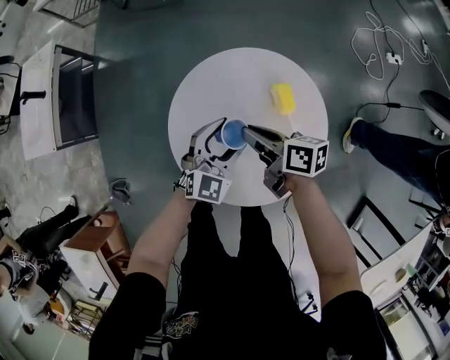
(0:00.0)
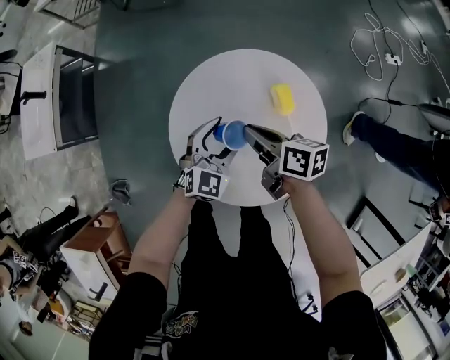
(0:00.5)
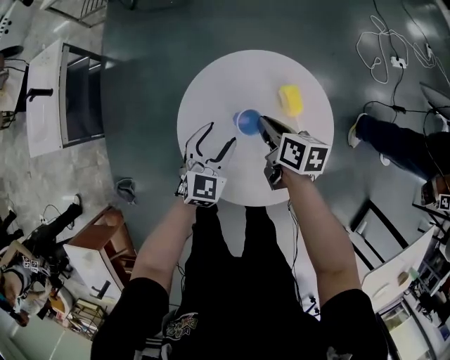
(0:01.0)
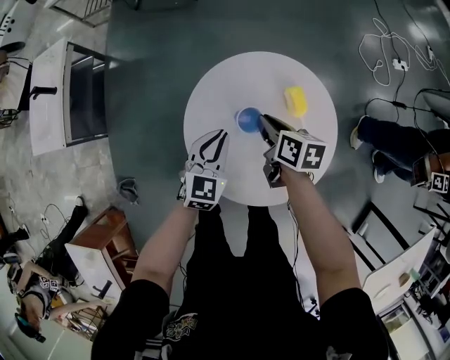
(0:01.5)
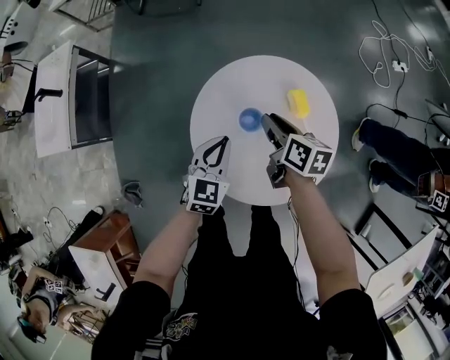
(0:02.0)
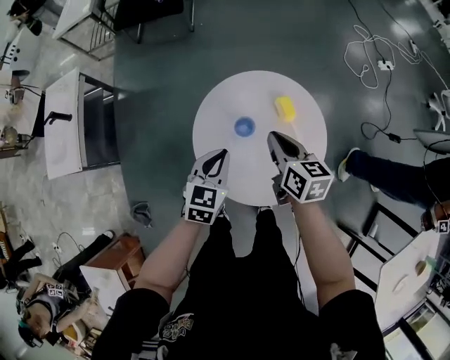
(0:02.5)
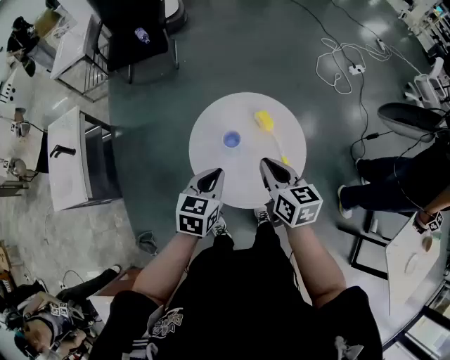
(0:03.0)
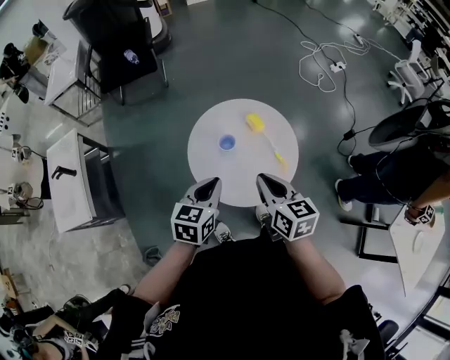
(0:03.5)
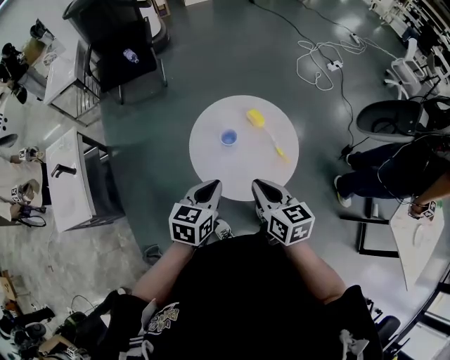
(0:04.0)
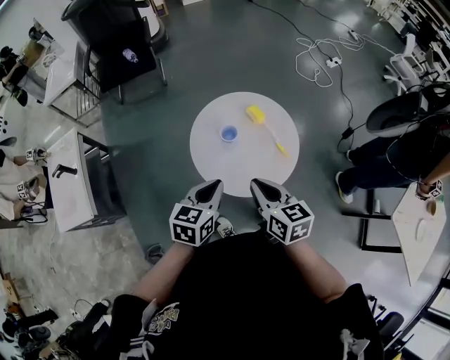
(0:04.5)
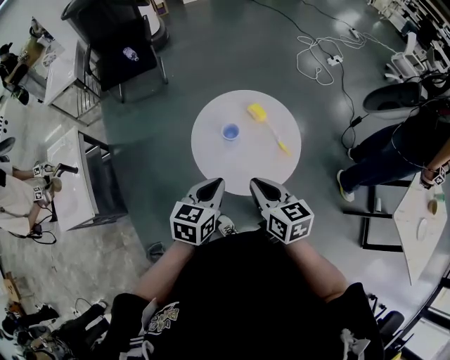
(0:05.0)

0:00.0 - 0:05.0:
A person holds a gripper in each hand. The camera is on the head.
0:00.0 - 0:02.5: The right gripper goes some 10 cm upward, and swivels roughly 30 degrees, while the left gripper heads to the left and upward, covering about 10 cm, rotates approximately 20 degrees, and closes.
0:02.5 - 0:05.0: The grippers both shift backward and upward by about 20 cm.

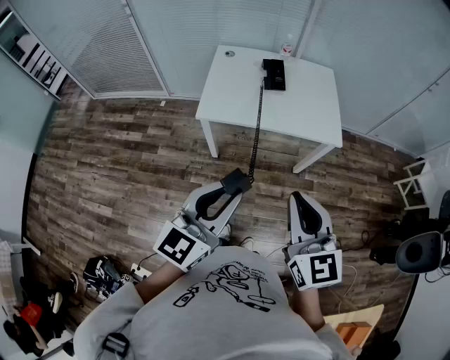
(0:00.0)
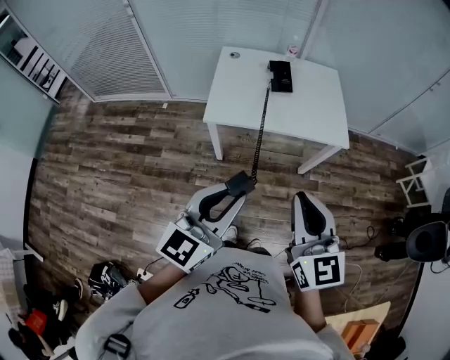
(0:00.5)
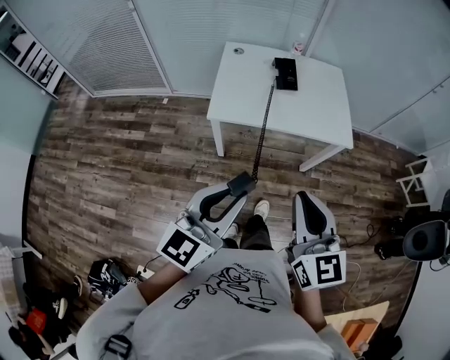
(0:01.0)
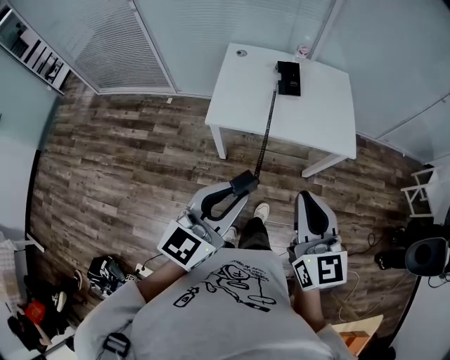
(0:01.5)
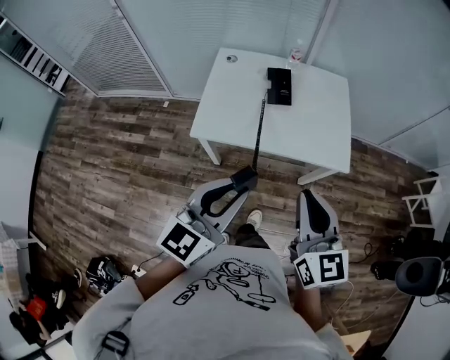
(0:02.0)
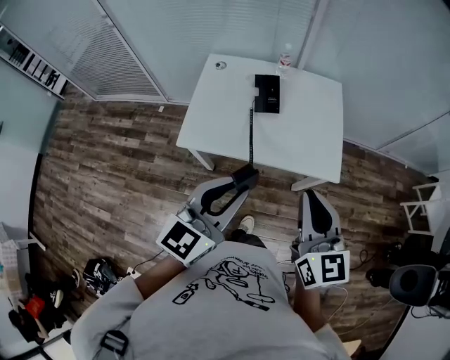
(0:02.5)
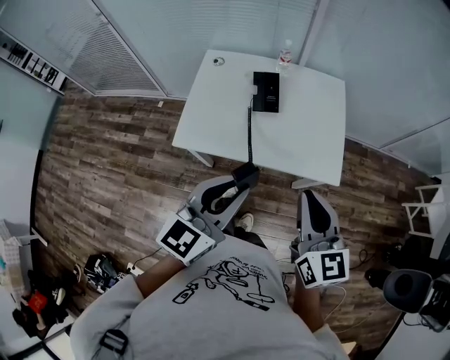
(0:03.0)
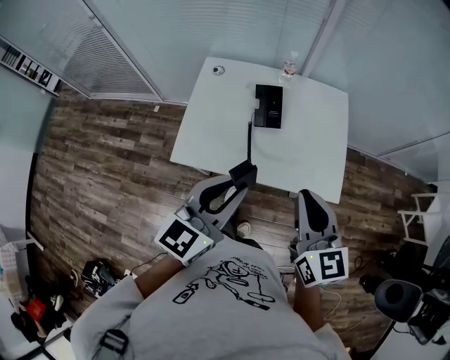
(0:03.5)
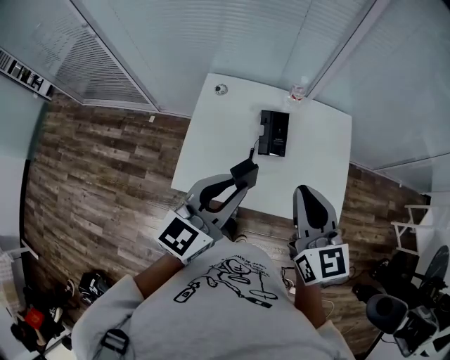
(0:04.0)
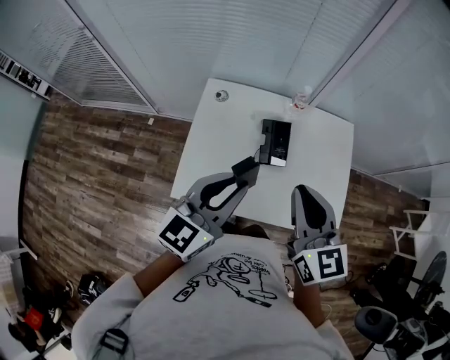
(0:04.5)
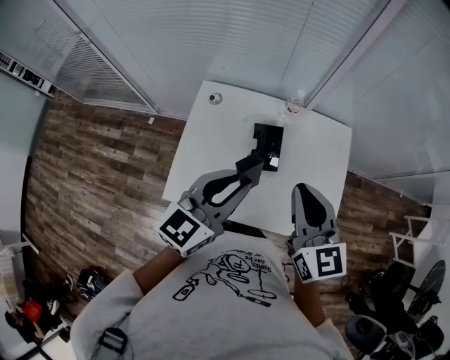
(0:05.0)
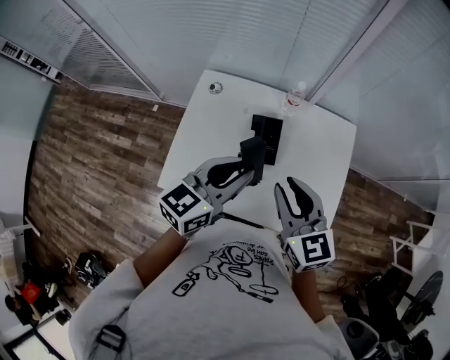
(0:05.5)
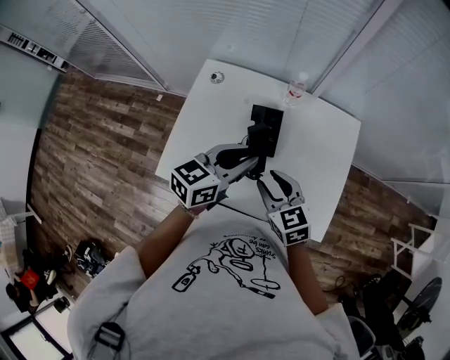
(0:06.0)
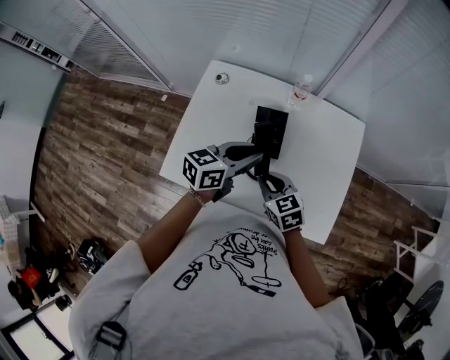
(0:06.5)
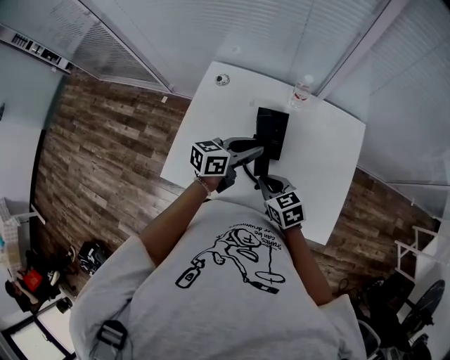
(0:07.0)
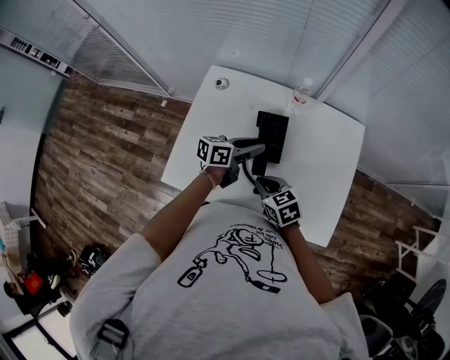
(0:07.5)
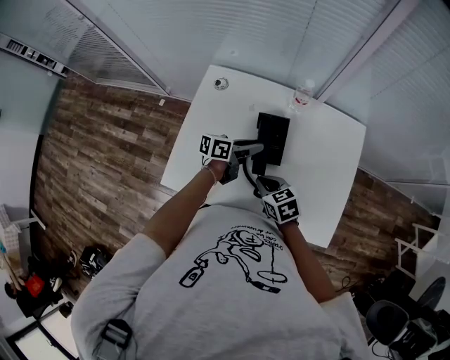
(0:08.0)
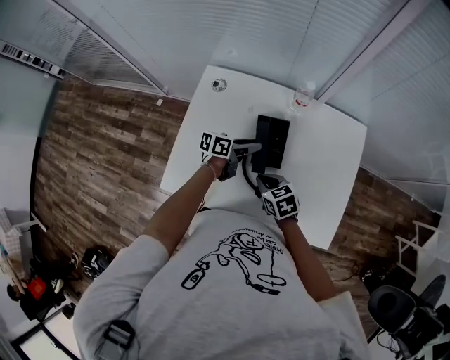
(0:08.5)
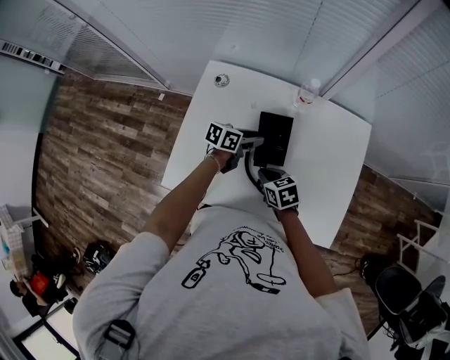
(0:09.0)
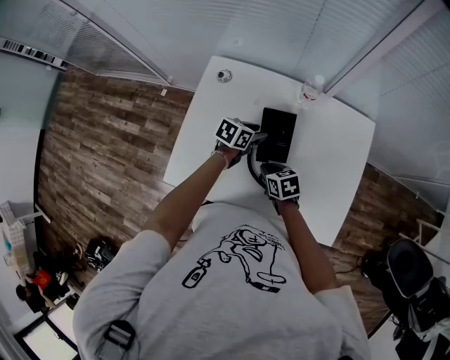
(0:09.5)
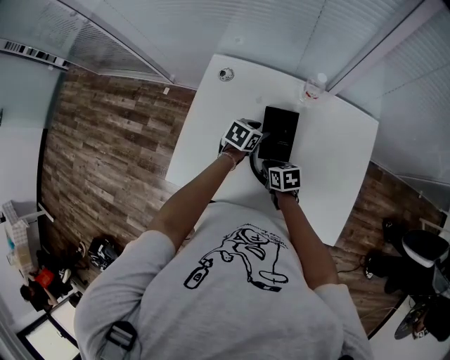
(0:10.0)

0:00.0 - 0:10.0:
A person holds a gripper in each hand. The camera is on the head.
0:00.0 - 0:02.0: The two grippers go about 20 cm forward.
0:02.0 - 0:04.0: Both grippers move forward, about 30 cm.
0:04.0 - 0:06.0: The left gripper goes some 20 cm forward, downward and to the right. Meanwhile the right gripper travels downward by some 20 cm, turns by approximately 30 degrees, and opens.
0:06.0 - 0:08.0: The right gripper travels downward by some 10 cm, and closes up, while the left gripper heads downward and forward, covering roughly 20 cm, and rotates roughly 30 degrees.
0:08.0 - 0:10.0: The right gripper goes approximately 10 cm downward and forward, and turns by about 20 degrees. Meanwhile the left gripper moves downward, some 5 cm, and angles its fingers downward, by roughly 30 degrees.

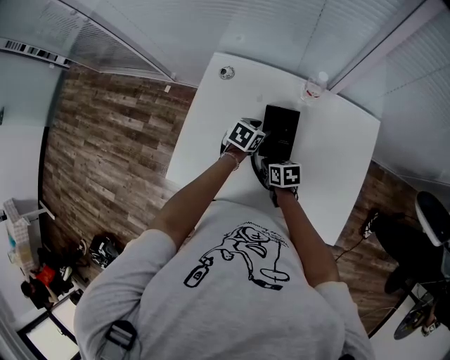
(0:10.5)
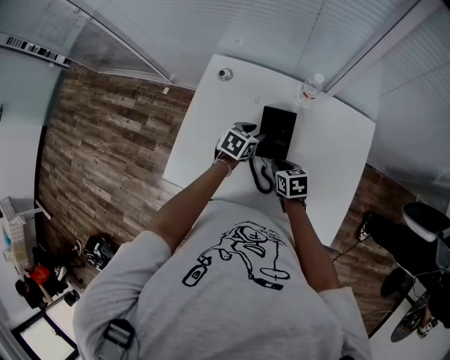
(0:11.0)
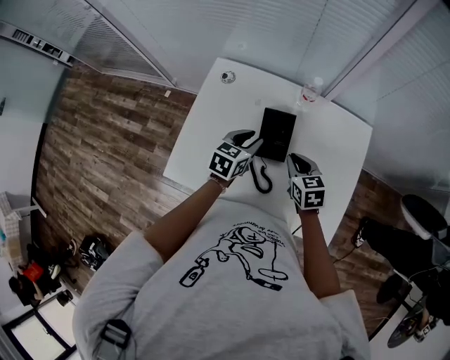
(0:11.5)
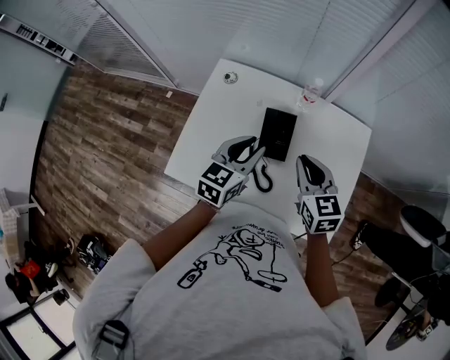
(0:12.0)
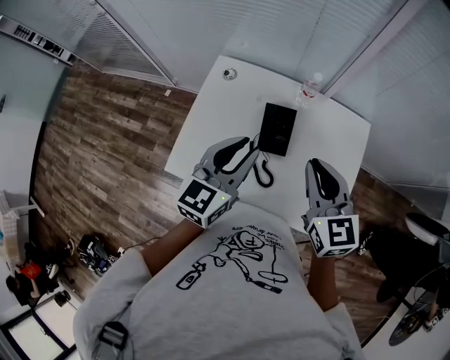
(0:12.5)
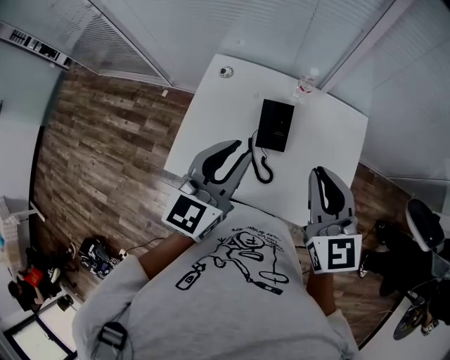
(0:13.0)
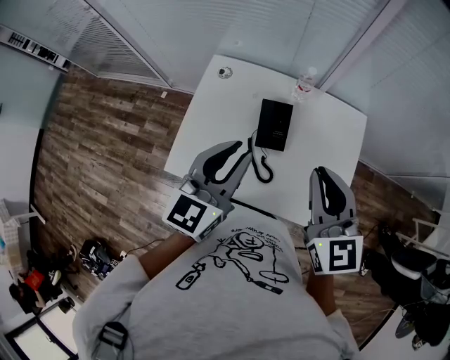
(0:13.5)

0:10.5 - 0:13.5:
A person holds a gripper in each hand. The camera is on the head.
0:10.5 - 0:12.0: The left gripper moves upward and backward, some 25 cm, and swivels roughly 30 degrees. Meanwhile the right gripper moves upward, some 25 cm, and turns by about 40 degrees.
0:12.0 - 0:13.5: The two grippers go roughly 15 cm upward and backward.

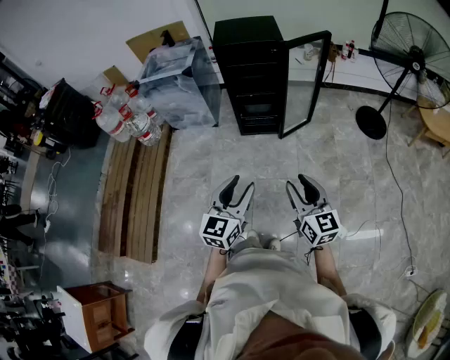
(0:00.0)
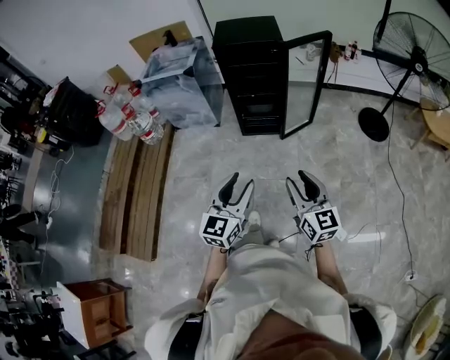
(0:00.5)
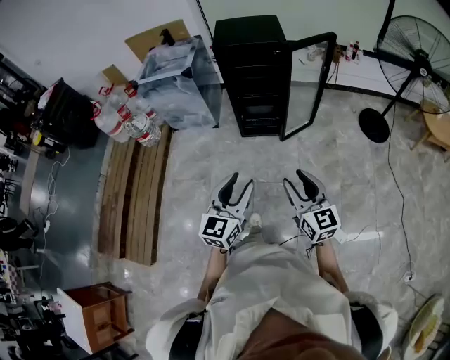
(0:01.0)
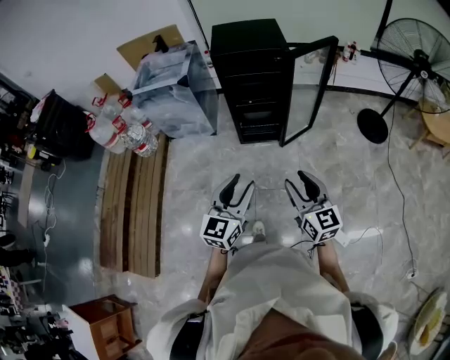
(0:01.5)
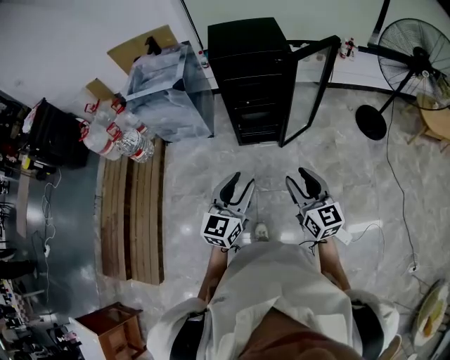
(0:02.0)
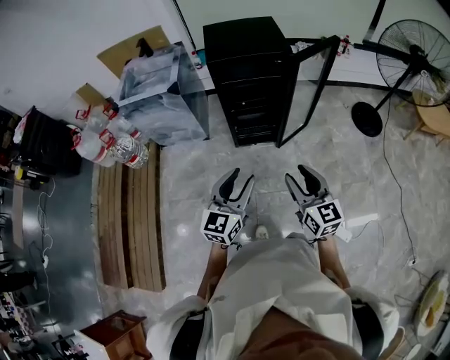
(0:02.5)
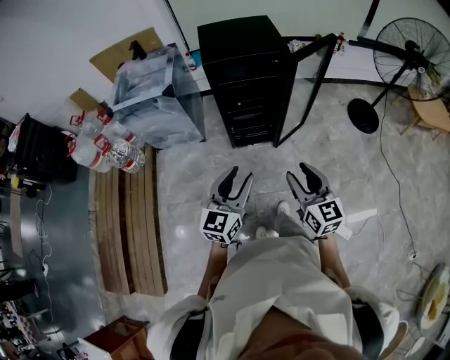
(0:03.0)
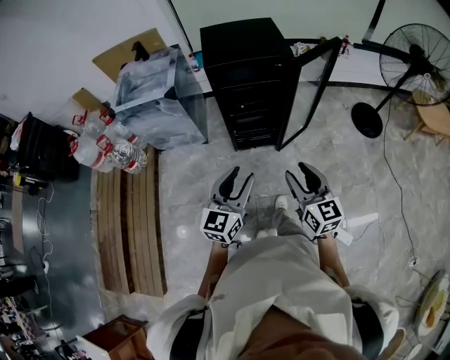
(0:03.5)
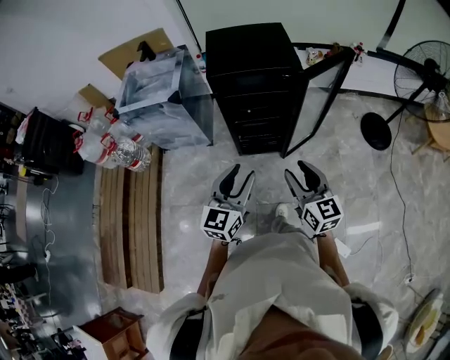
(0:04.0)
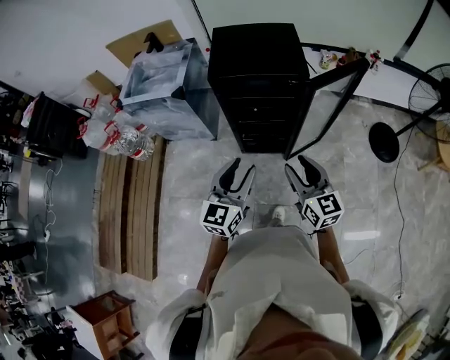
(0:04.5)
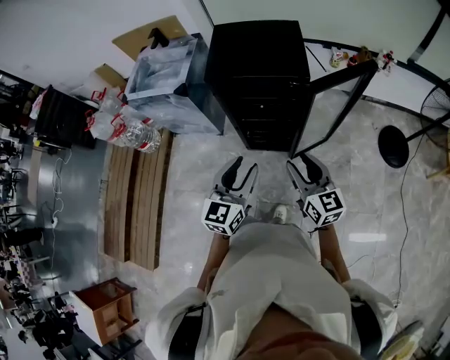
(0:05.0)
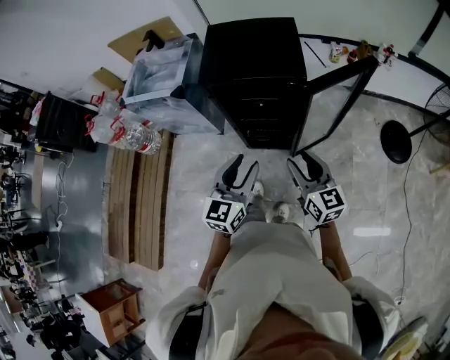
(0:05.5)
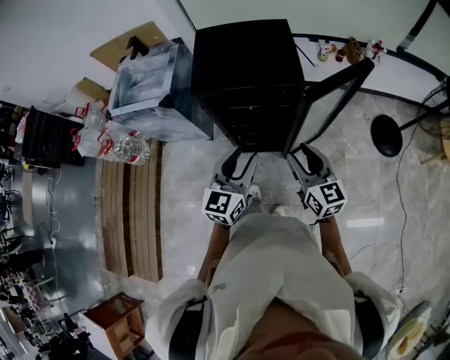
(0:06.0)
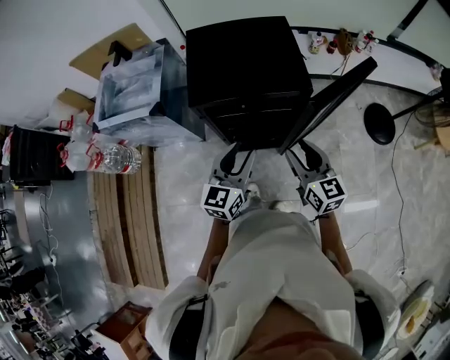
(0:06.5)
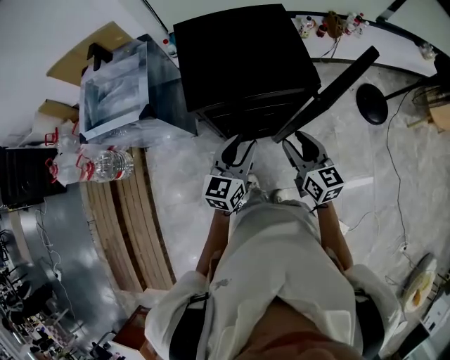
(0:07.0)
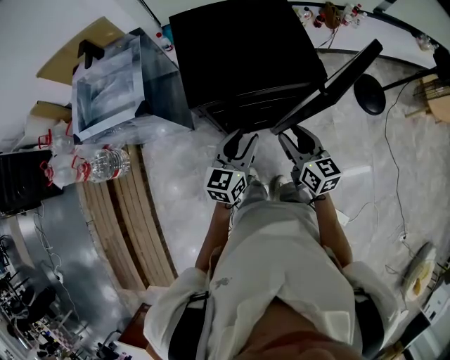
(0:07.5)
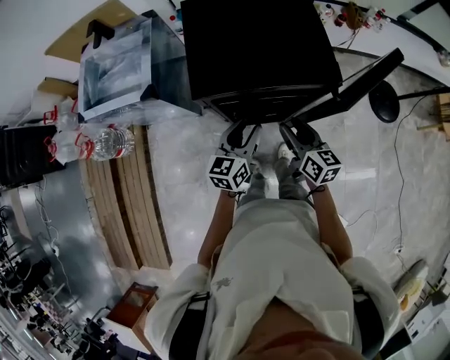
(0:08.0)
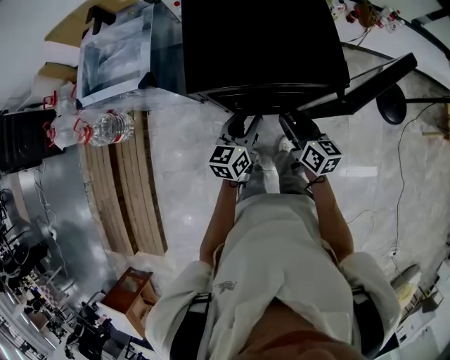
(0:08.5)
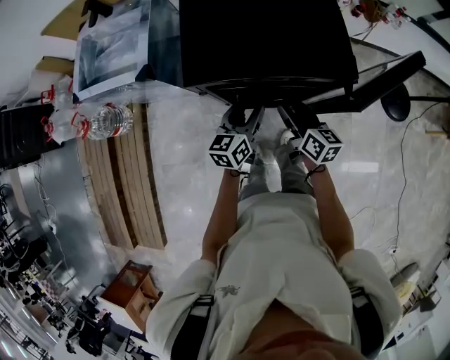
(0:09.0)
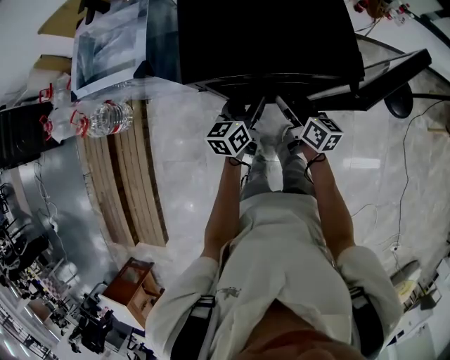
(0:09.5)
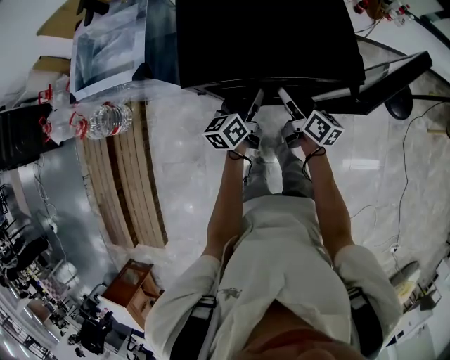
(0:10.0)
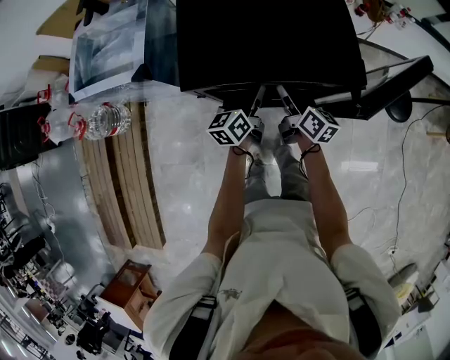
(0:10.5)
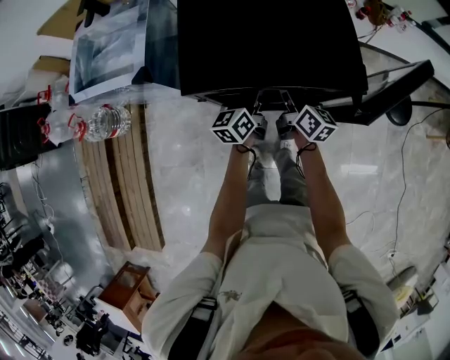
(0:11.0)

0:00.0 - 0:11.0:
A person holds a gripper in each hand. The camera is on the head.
0:00.0 - 0:02.0: Both grippers move forward, about 20 cm.
0:02.0 - 0:03.5: Both grippers travel together forward, about 10 cm.
0:03.5 - 0:05.5: The two grippers go some 20 cm forward and to the right.
0:05.5 - 0:07.5: The left gripper travels forward and downward by roughly 20 cm, and turns by approximately 20 degrees; the right gripper moves forward, to the left and downward, about 20 cm.
0:07.5 - 0:09.0: Both grippers travel together downward and forward, approximately 10 cm.
0:09.0 - 0:11.0: The two grippers go about 10 cm forward. The right gripper opens and closes again.
